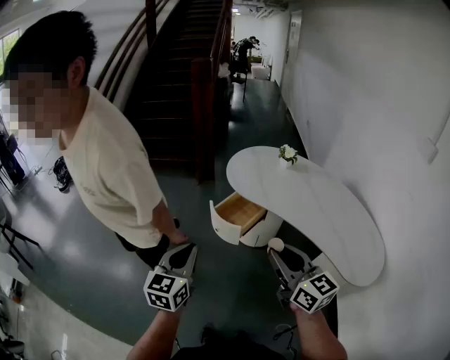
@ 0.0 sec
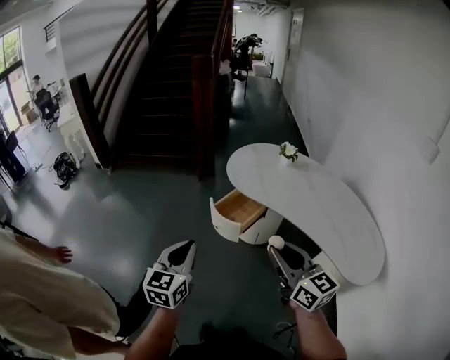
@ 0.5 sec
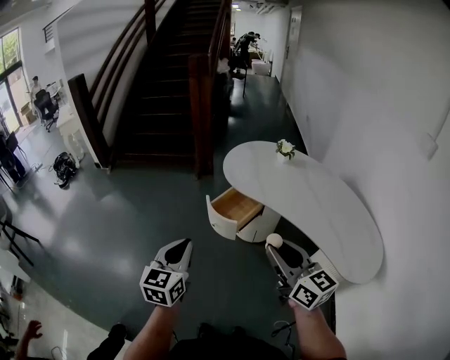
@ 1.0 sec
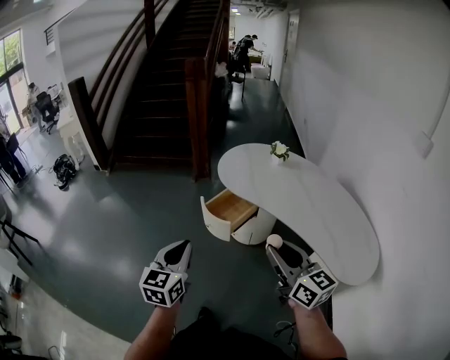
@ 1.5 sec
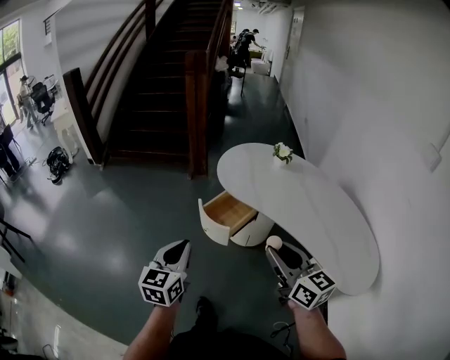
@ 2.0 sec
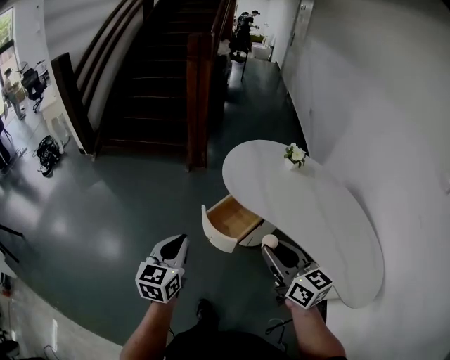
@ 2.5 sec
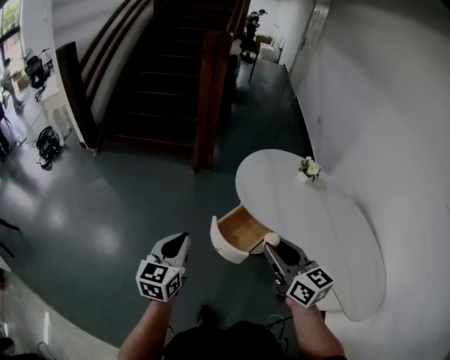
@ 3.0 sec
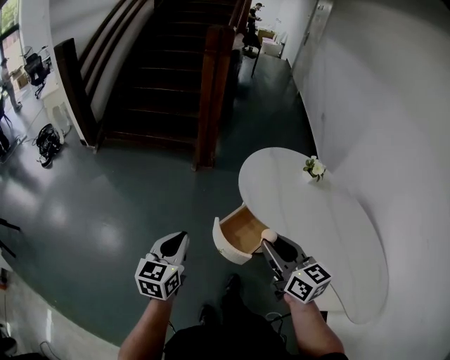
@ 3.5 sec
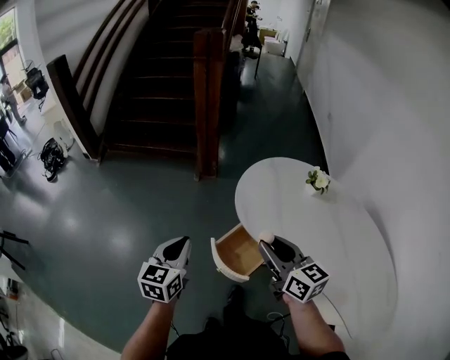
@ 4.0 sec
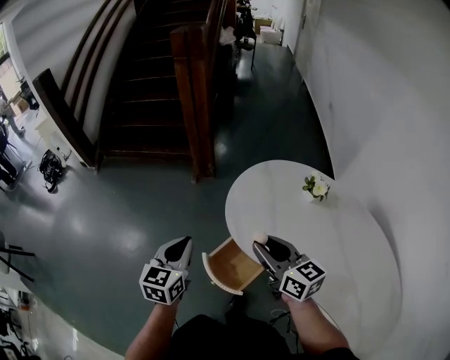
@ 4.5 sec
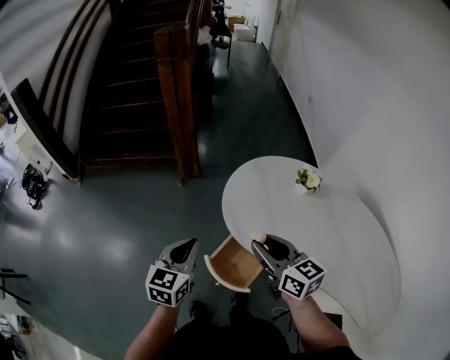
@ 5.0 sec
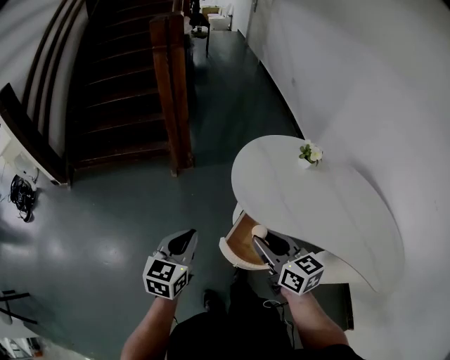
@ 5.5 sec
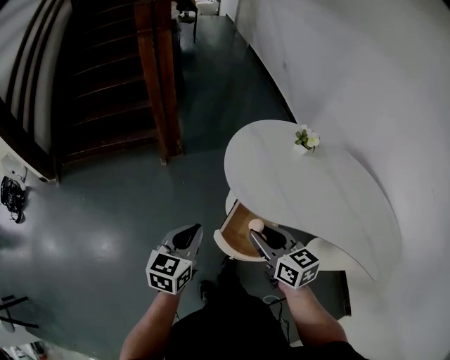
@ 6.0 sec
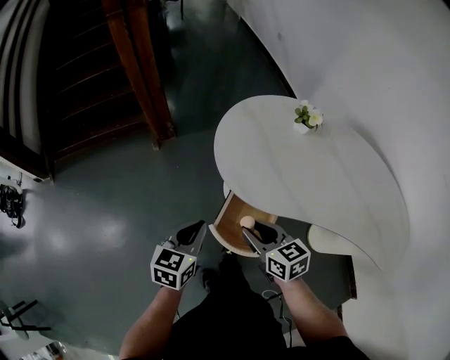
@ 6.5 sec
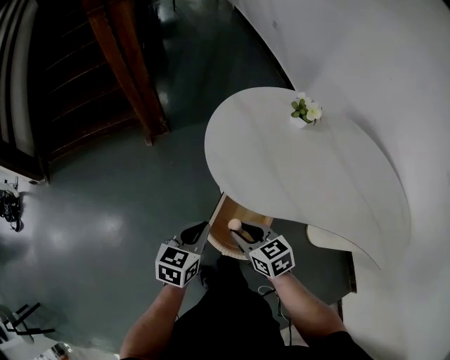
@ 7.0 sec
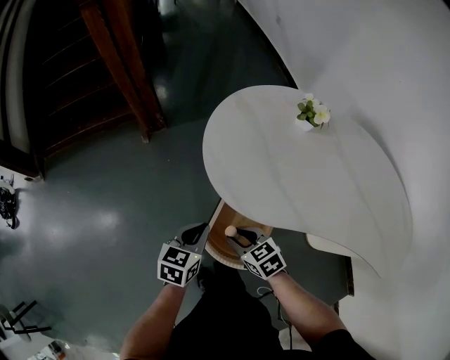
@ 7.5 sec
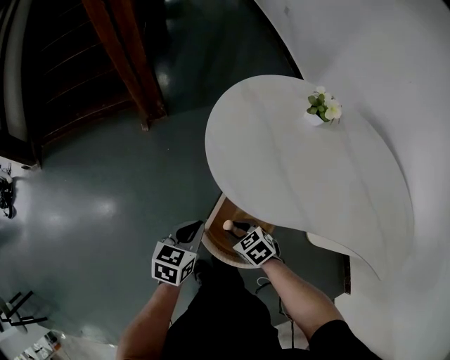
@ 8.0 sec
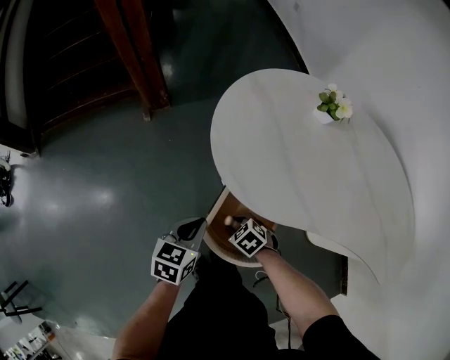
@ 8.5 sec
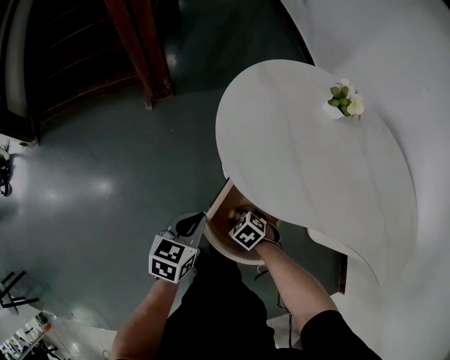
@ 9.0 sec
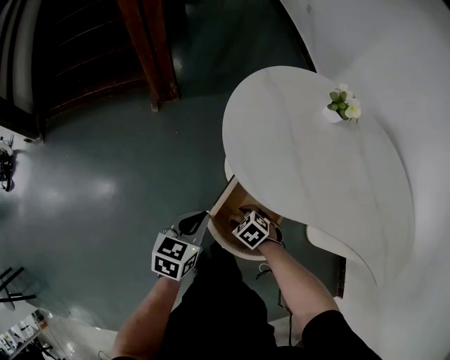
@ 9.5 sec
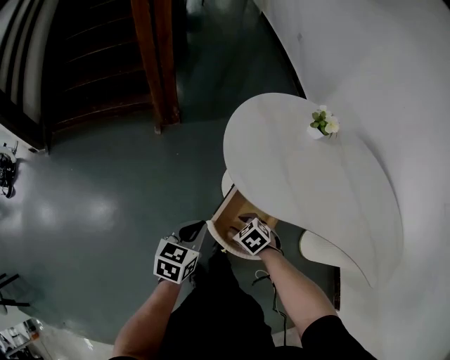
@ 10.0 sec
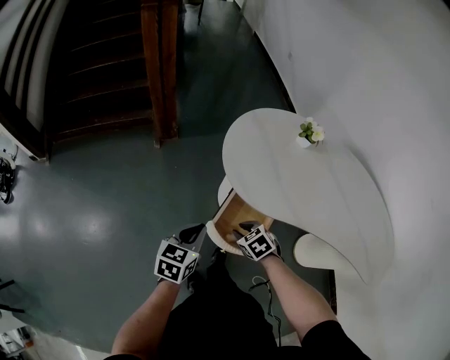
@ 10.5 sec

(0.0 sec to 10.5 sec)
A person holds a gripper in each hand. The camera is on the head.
0.0 sec - 2.0 sec: The right gripper moves some 5 cm. Meanwhile the left gripper shifts by some 5 cm.
2.0 sec - 4.0 sec: The grippers both shift forward by roughly 30 cm.
4.0 sec - 6.5 sec: The left gripper shifts roughly 15 cm downward and forward, and turns by approximately 30 degrees. Meanwhile the right gripper goes approximately 20 cm downward, and swivels about 20 degrees.
6.5 sec - 8.5 sec: The left gripper is displaced downward by roughly 15 cm, while the right gripper is displaced downward by some 25 cm, and tilts its fingers roughly 40 degrees downward.
8.5 sec - 10.5 sec: The left gripper is displaced upward, to the left and backward by roughly 15 cm; the right gripper shifts approximately 15 cm upward.

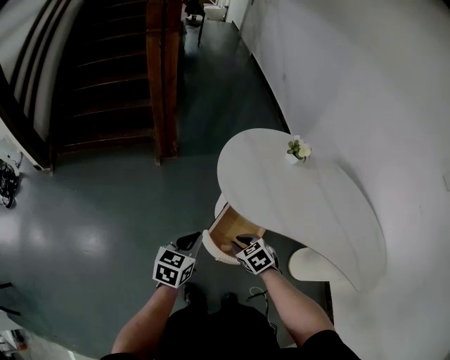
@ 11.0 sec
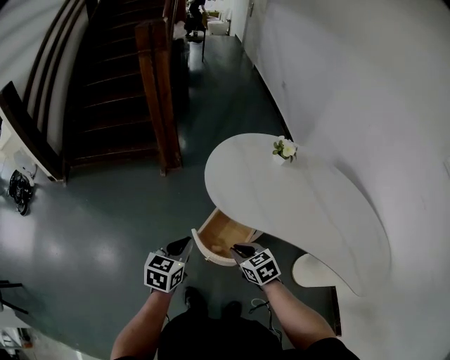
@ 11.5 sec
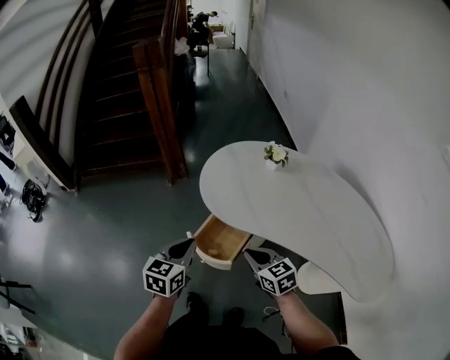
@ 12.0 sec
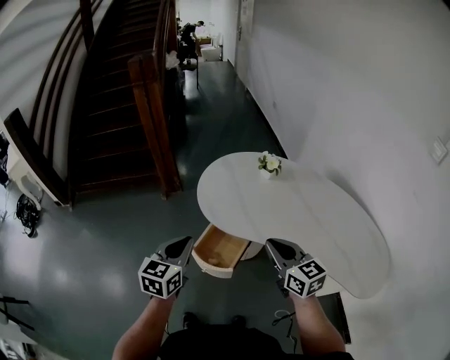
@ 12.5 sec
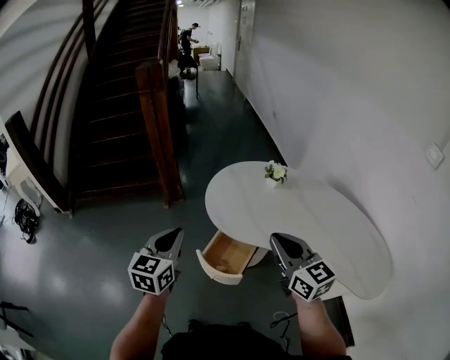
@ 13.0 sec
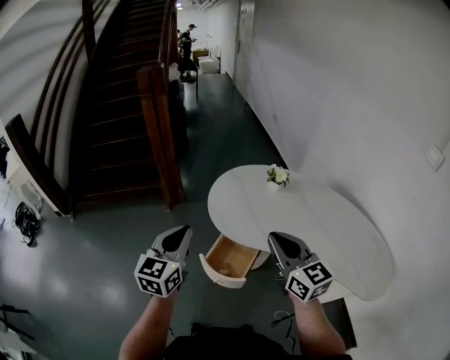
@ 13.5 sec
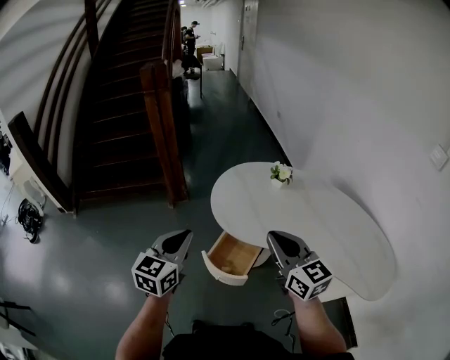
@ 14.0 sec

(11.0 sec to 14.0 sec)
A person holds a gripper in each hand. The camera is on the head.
11.0 sec - 12.5 sec: The left gripper moves upward and to the right, about 15 cm. Meanwhile the right gripper is displaced upward and to the right by roughly 30 cm, and tilts its fingers approximately 40 degrees upward.
12.5 sec - 14.0 sec: The left gripper heads to the left and upward, covering some 10 cm. The right gripper heads upward and to the left, covering some 10 cm.

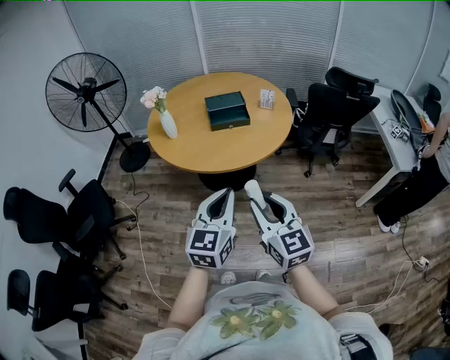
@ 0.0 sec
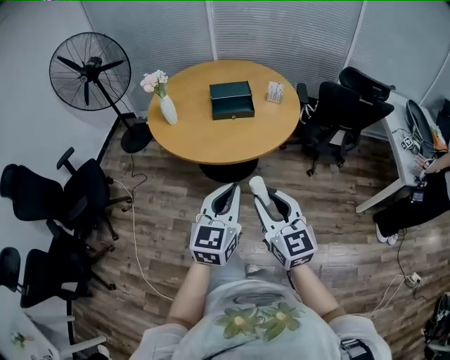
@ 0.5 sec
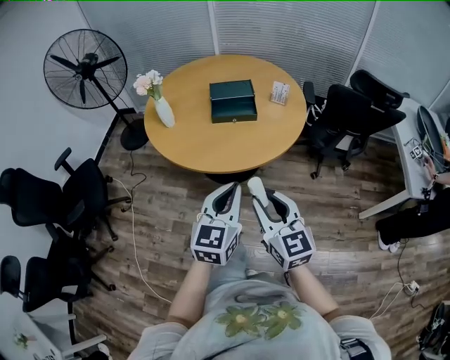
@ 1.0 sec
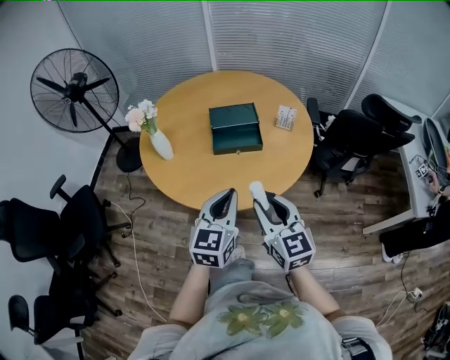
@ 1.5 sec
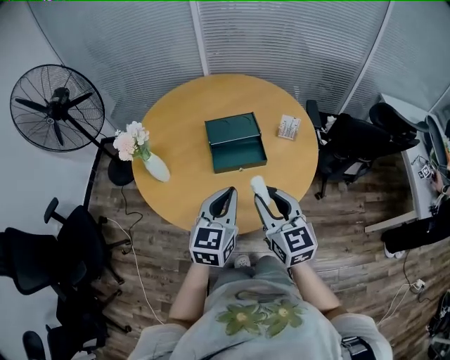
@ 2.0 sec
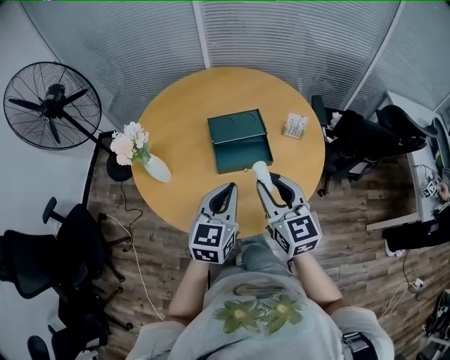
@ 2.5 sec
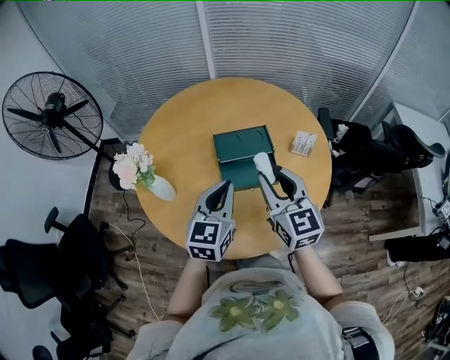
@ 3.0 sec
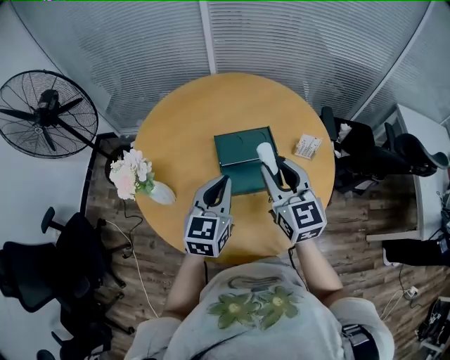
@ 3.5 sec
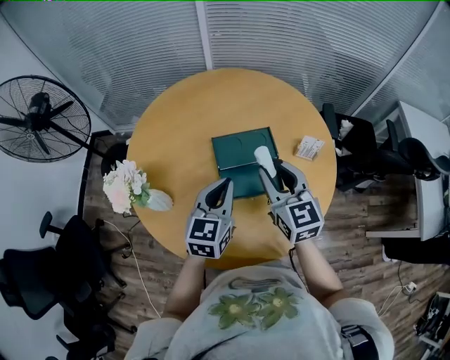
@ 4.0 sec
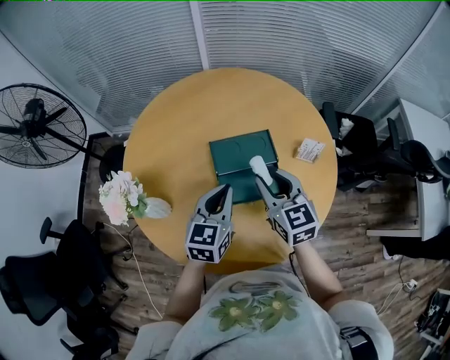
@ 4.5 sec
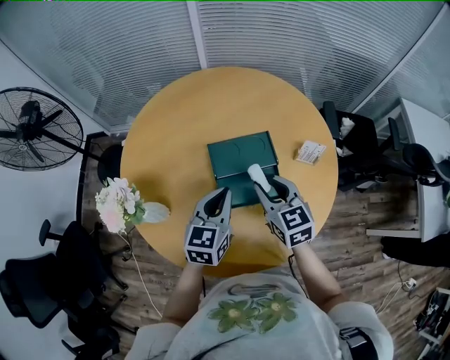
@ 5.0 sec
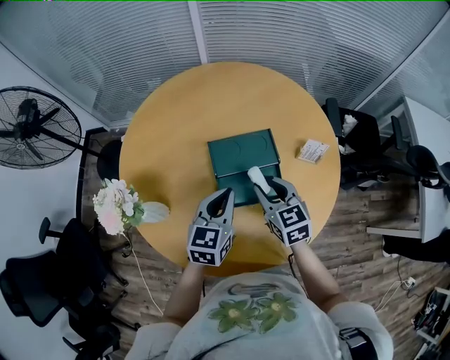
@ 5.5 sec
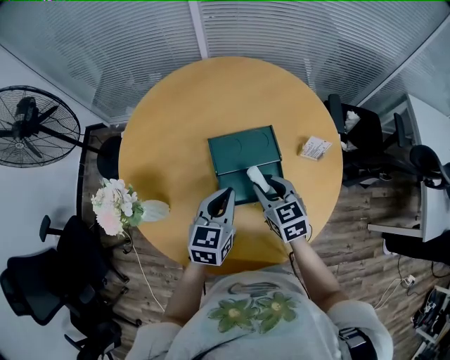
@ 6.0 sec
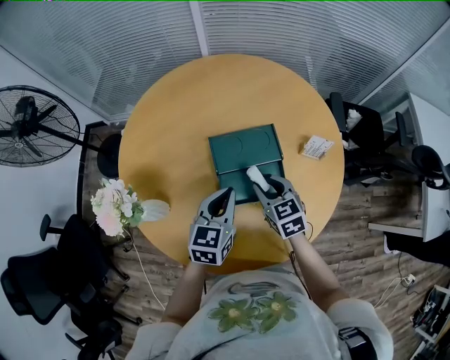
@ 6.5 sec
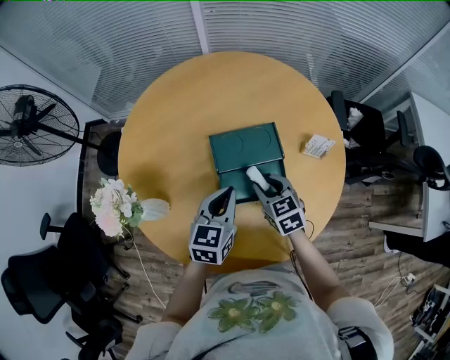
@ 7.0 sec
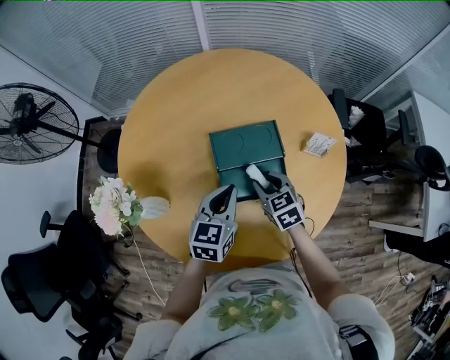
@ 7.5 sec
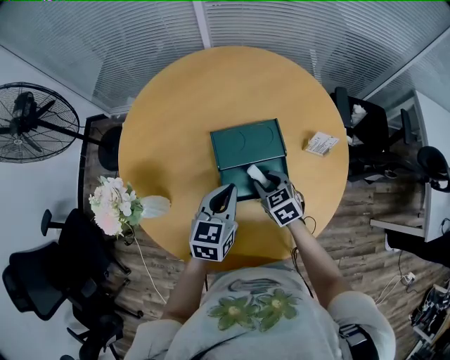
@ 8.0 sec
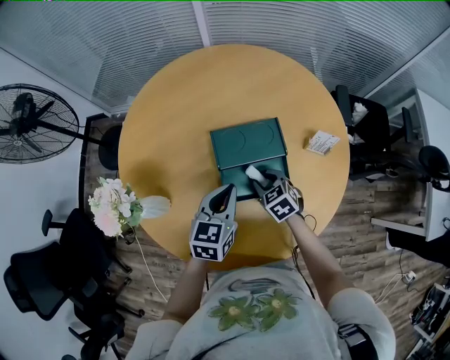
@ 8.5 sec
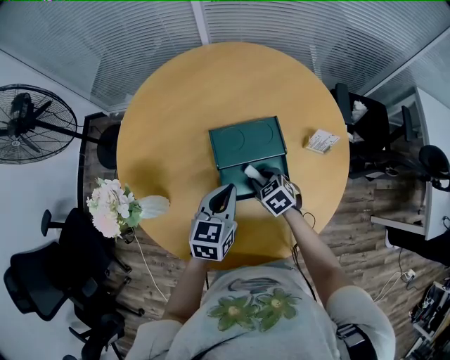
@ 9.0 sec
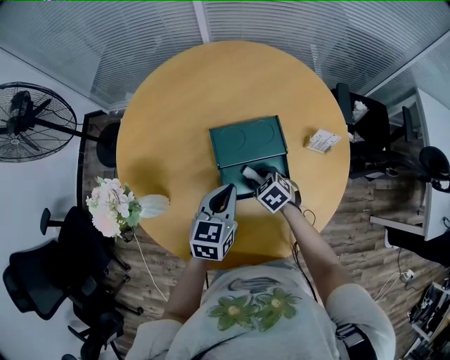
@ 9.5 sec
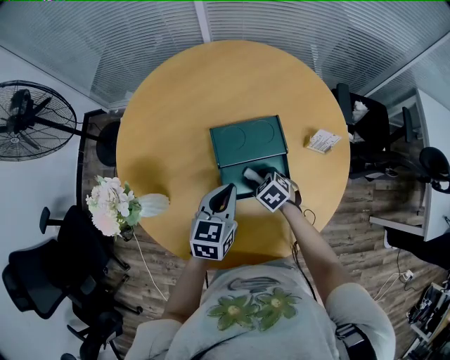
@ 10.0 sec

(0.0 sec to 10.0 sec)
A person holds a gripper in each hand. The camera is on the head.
0.0 sec - 2.0 sec: The pair of grippers is taken forward, approximately 40 cm.
2.0 sec - 4.0 sec: Both grippers travel together forward, some 25 cm.
4.0 sec - 6.0 sec: The right gripper shifts some 15 cm downward, and rotates roughly 20 degrees. The left gripper travels downward by approximately 5 cm.
6.0 sec - 8.0 sec: The right gripper travels downward by approximately 10 cm.
8.0 sec - 10.0 sec: The right gripper travels downward by approximately 5 cm, and rotates some 20 degrees.

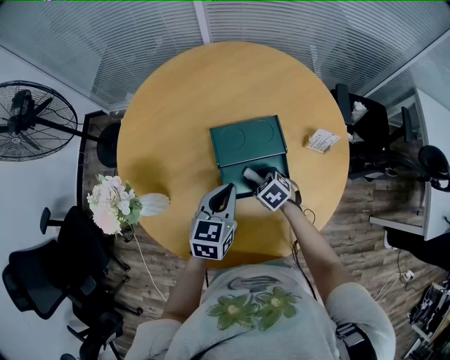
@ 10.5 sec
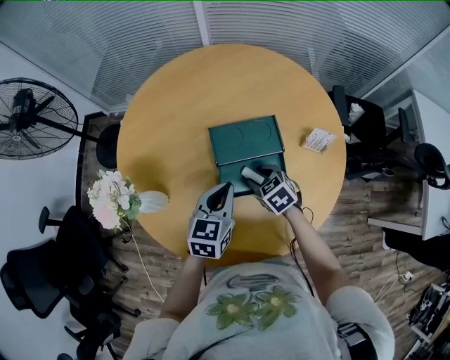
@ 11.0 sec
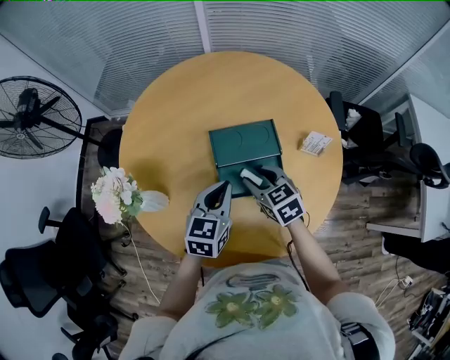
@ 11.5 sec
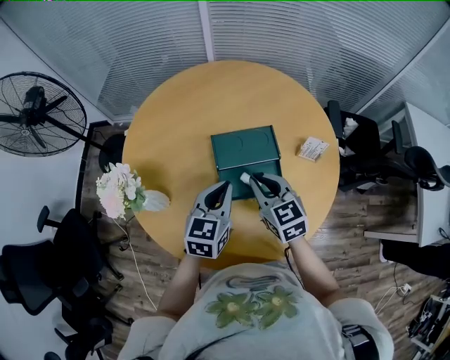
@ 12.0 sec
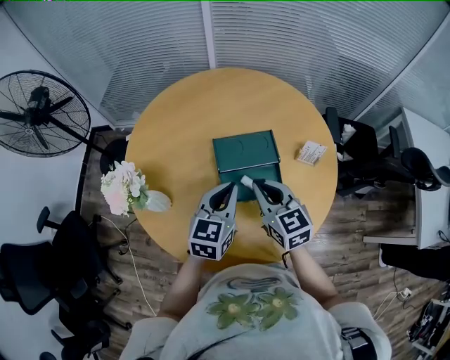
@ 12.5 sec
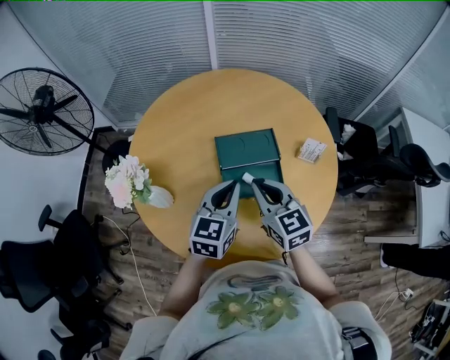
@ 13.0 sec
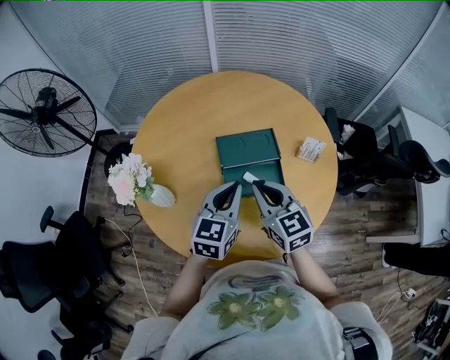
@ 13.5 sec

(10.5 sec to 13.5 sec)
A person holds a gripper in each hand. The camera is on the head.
10.5 sec - 12.0 sec: The left gripper travels upward by approximately 5 cm, while the right gripper shifts approximately 20 cm upward, tilts its fingers approximately 40 degrees upward, and closes its fingers.
12.0 sec - 13.5 sec: The right gripper goes approximately 10 cm backward and upward. Meanwhile the left gripper changes place by about 5 cm.
